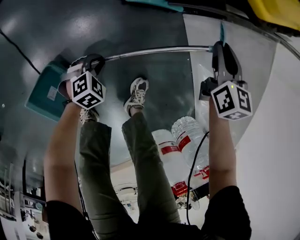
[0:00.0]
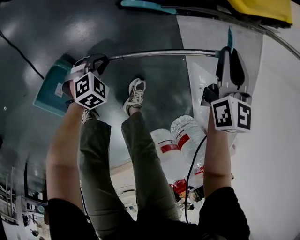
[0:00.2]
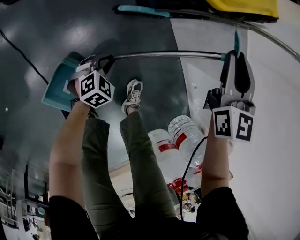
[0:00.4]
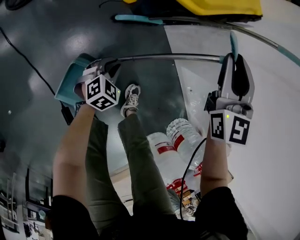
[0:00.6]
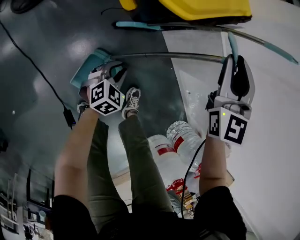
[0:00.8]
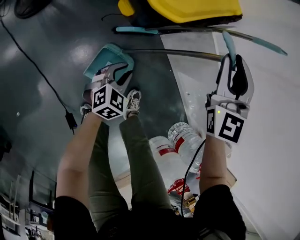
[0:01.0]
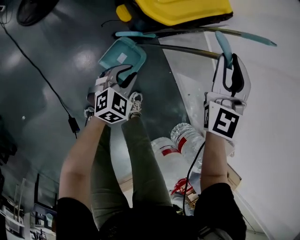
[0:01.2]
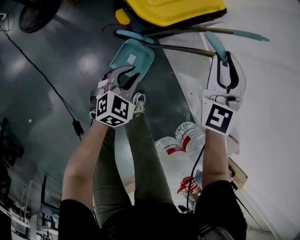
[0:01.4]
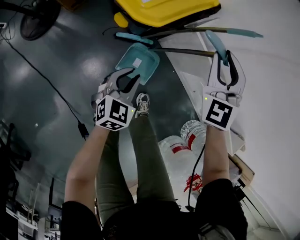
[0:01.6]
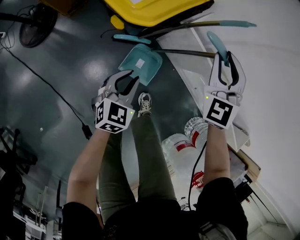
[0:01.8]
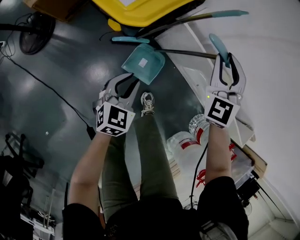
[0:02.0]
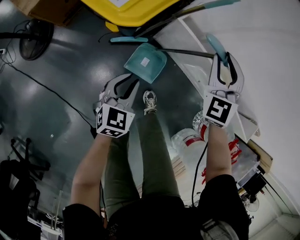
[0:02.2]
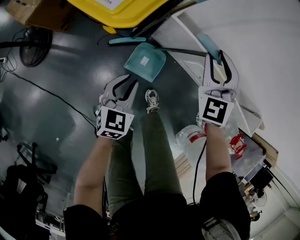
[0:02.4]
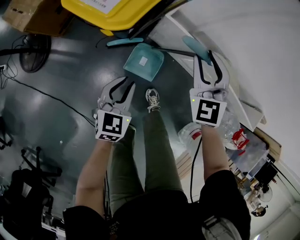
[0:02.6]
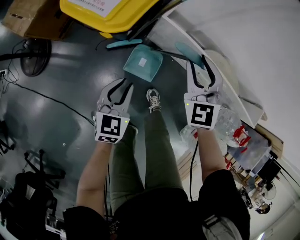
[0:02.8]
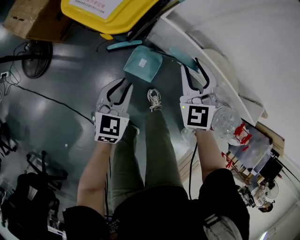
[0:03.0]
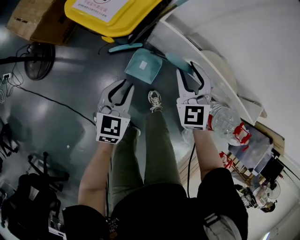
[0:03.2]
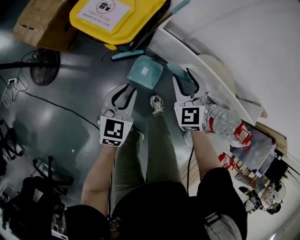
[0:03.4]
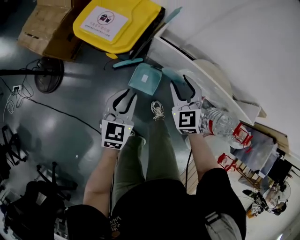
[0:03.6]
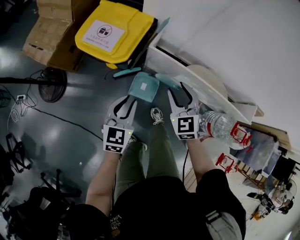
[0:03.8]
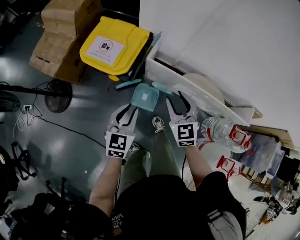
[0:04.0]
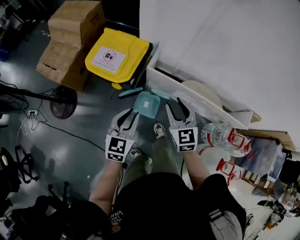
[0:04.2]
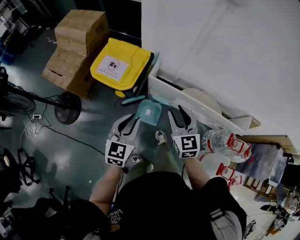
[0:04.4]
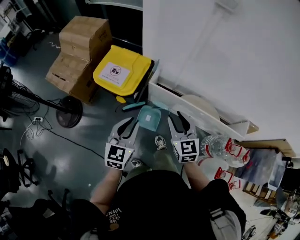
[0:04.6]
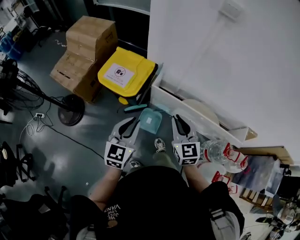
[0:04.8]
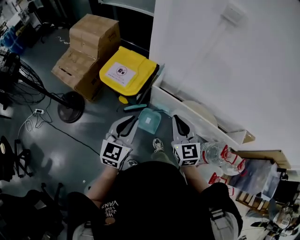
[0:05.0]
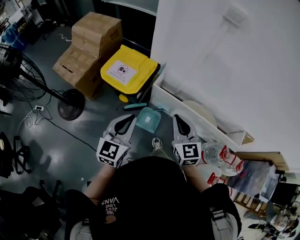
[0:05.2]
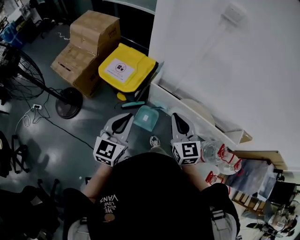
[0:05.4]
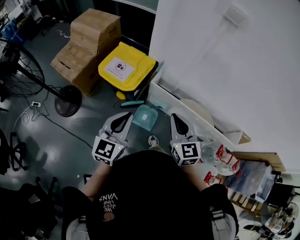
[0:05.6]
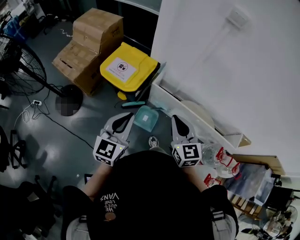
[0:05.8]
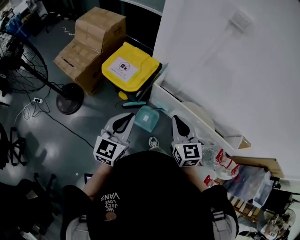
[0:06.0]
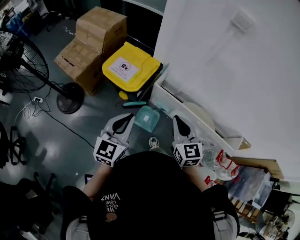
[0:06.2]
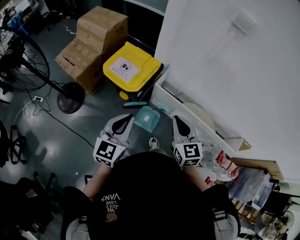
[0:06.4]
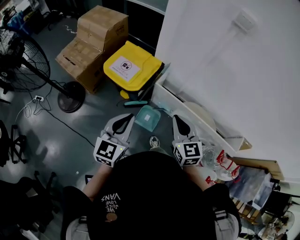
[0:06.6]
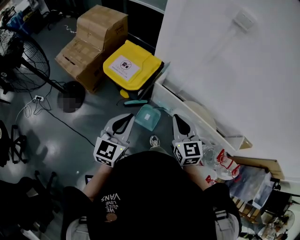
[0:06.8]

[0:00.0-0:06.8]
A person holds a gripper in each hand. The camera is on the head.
0:00.0 to 0:01.4: Both grippers travel together upward, about 35 cm. The right gripper changes its angle by some 40 degrees. Meanwhile the left gripper changes its angle by approximately 30 degrees.
0:01.4 to 0:02.8: The left gripper shifts about 10 cm upward, while the right gripper is displaced to the right and backward by roughly 10 cm, and changes its angle by approximately 20 degrees.
0:02.8 to 0:04.0: The left gripper heads upward, covering about 20 cm. The right gripper goes approximately 15 cm upward and backward.
0:04.0 to 0:05.4: The right gripper travels upward and backward by approximately 20 cm, and closes its fingers, while the left gripper goes roughly 20 cm upward.
0:05.4 to 0:06.8: The grippers make only small movements.

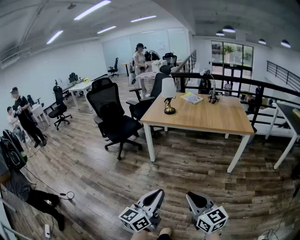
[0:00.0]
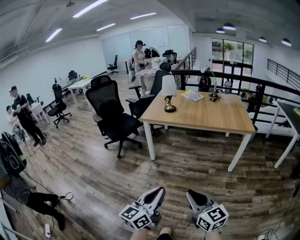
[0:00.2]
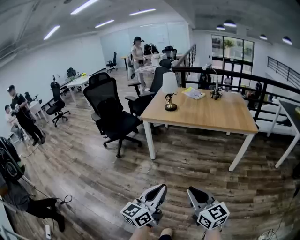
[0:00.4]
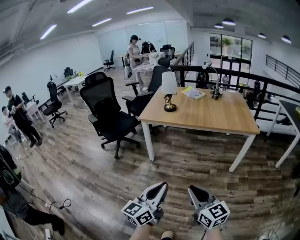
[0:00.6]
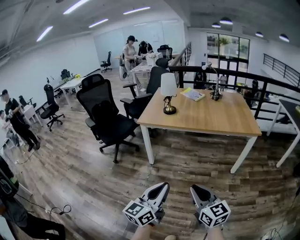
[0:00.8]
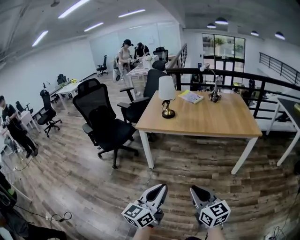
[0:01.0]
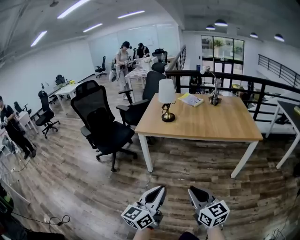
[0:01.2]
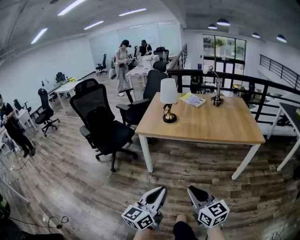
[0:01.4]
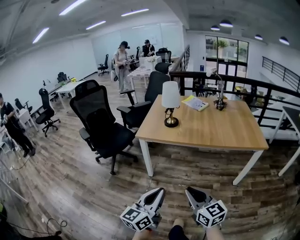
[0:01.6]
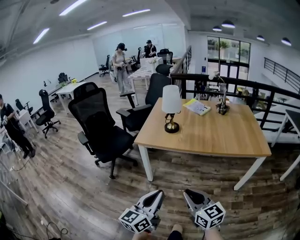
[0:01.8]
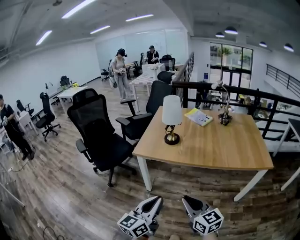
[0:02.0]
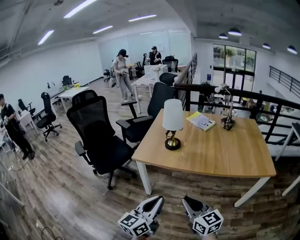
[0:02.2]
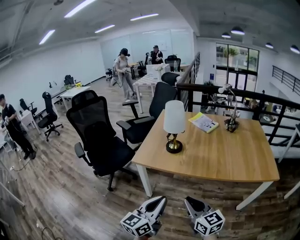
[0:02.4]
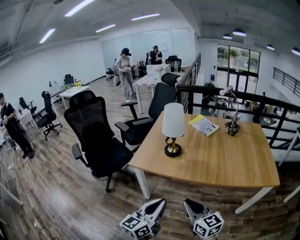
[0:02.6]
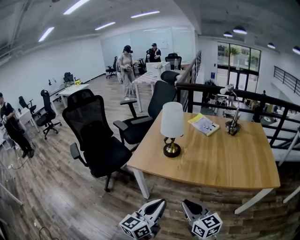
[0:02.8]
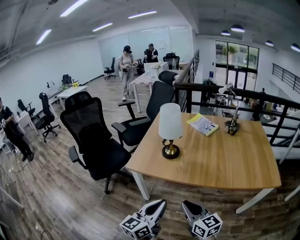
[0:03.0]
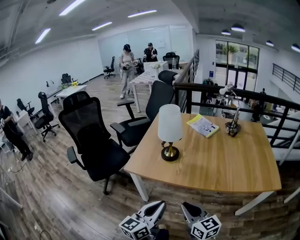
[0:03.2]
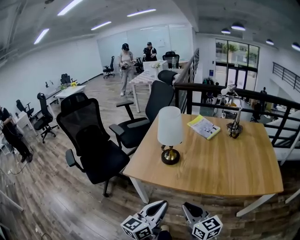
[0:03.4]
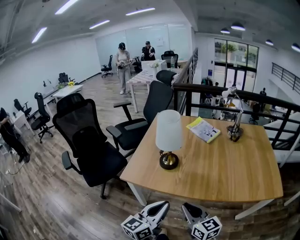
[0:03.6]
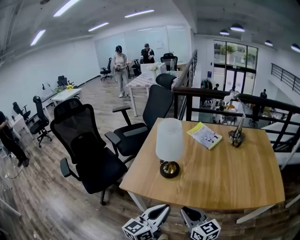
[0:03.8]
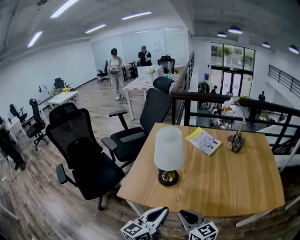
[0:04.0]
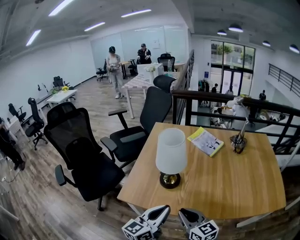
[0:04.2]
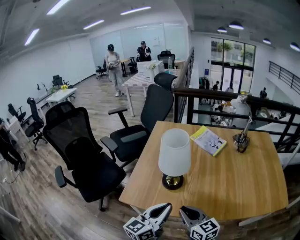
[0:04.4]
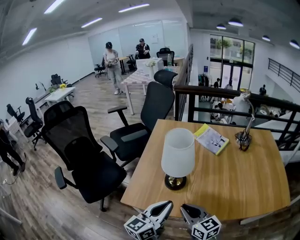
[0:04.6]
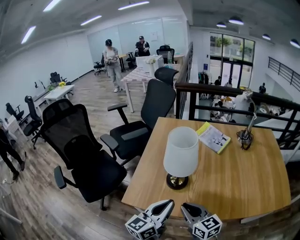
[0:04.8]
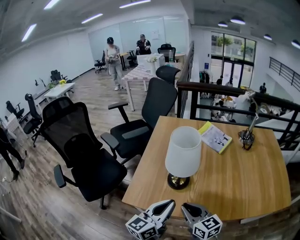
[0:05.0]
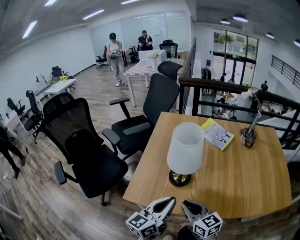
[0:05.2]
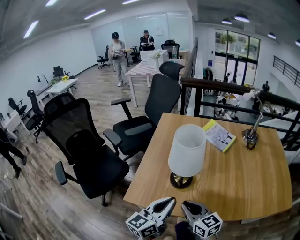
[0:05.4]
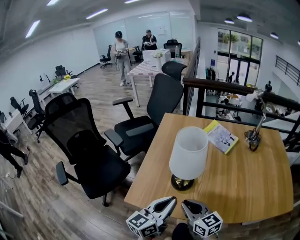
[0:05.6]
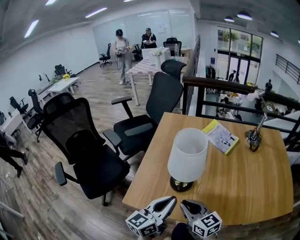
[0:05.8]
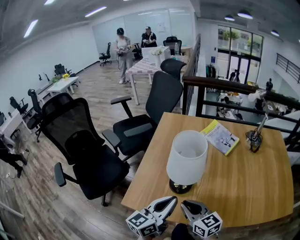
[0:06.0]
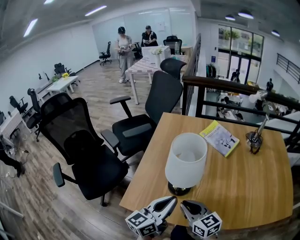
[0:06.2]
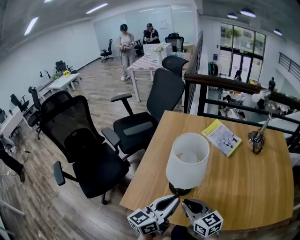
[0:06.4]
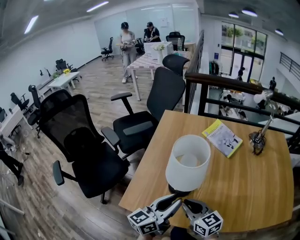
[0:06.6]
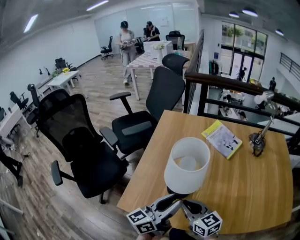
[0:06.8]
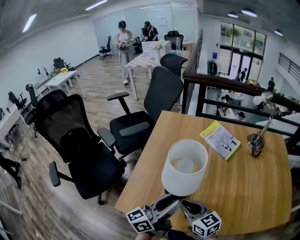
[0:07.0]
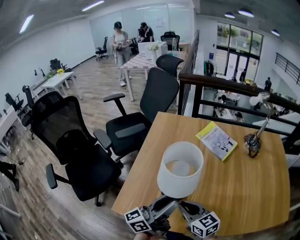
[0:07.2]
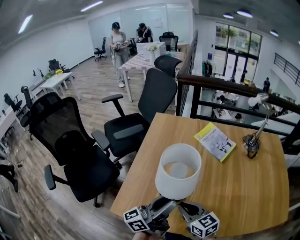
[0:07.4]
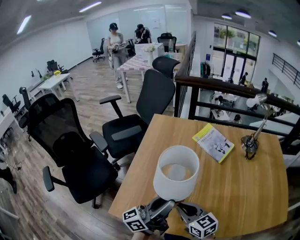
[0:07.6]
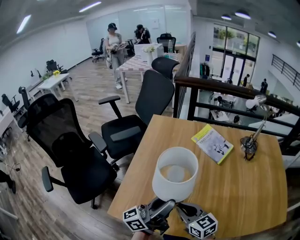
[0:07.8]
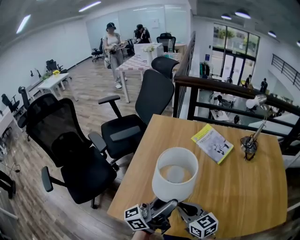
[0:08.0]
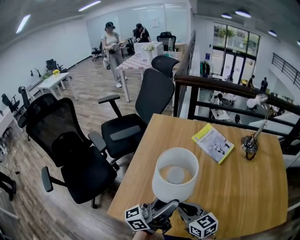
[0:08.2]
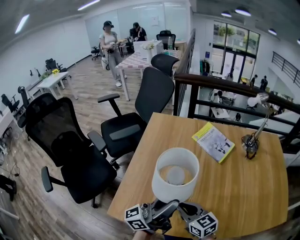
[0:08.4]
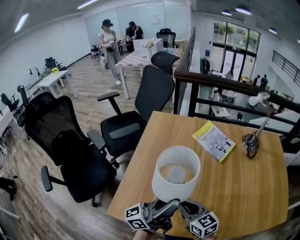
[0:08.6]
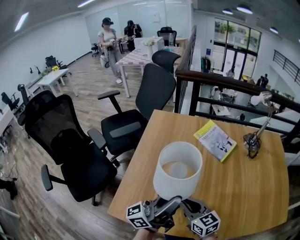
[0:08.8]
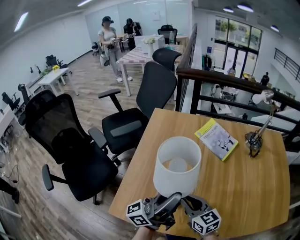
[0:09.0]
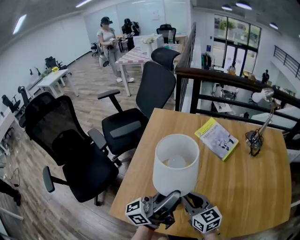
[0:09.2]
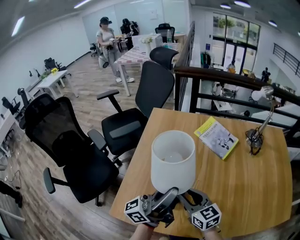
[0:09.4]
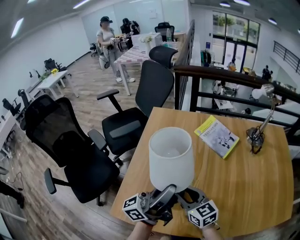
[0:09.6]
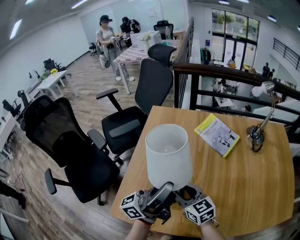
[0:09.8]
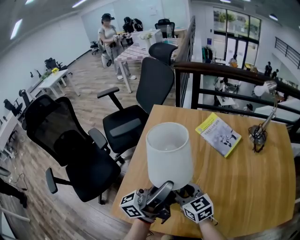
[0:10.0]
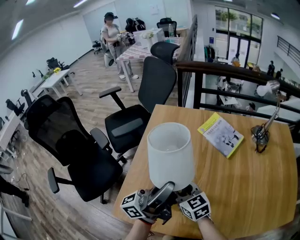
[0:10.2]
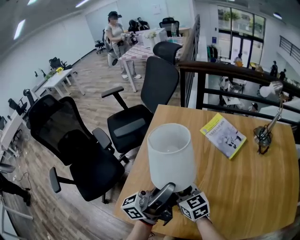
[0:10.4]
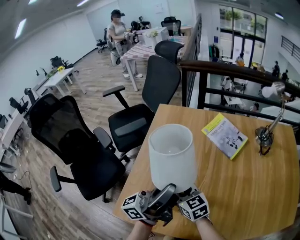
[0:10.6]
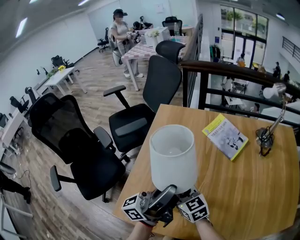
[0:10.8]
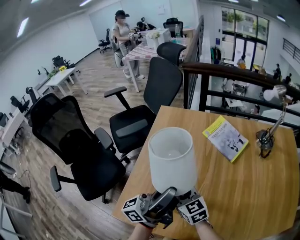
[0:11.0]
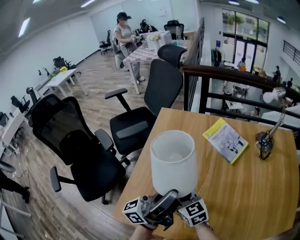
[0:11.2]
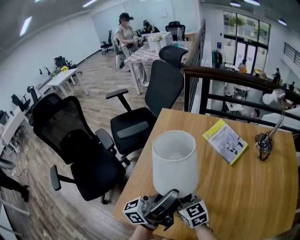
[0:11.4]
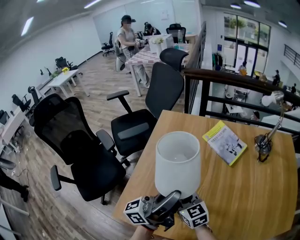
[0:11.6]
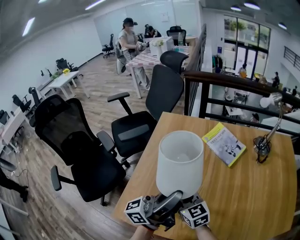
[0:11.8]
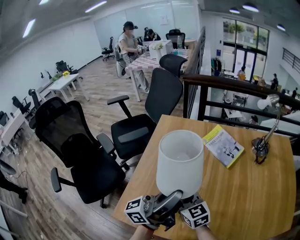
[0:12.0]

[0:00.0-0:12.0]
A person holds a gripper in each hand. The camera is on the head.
0:00.0 to 0:01.6: Both grippers travel together forward, about 35 cm.
0:01.6 to 0:03.0: Both grippers travel together forward, approximately 25 cm.
0:03.0 to 0:04.4: The two grippers go about 25 cm forward.
0:04.4 to 0:06.0: Both grippers travel together forward, about 10 cm.
0:06.0 to 0:07.6: Both grippers travel together forward, approximately 5 cm. The left gripper changes its angle by approximately 30 degrees, and opens up.
0:07.6 to 0:09.0: The left gripper closes its fingers.
0:09.0 to 0:10.4: The left gripper shifts by some 5 cm; the right gripper shifts approximately 10 cm forward and to the left, and opens.
0:10.4 to 0:12.0: The left gripper ends up roughly 5 cm from where it was.

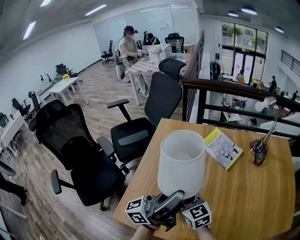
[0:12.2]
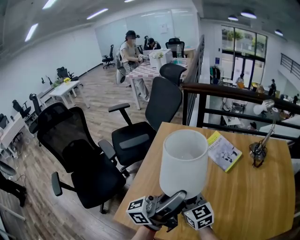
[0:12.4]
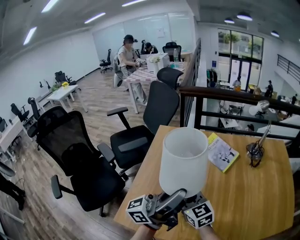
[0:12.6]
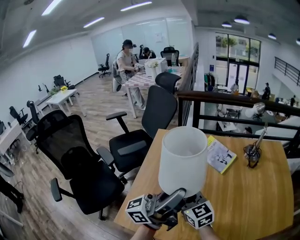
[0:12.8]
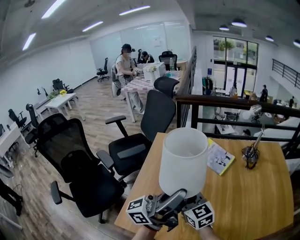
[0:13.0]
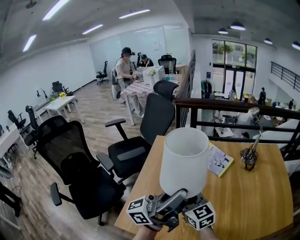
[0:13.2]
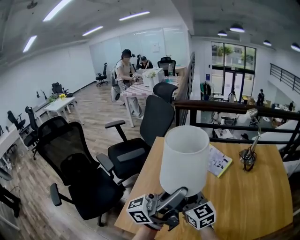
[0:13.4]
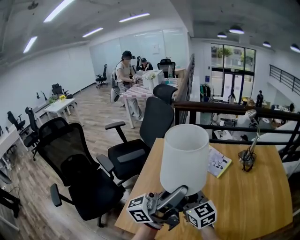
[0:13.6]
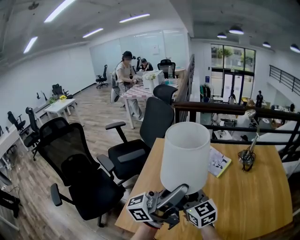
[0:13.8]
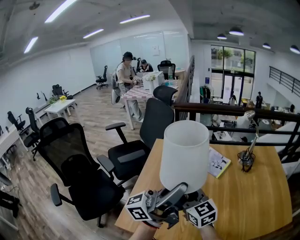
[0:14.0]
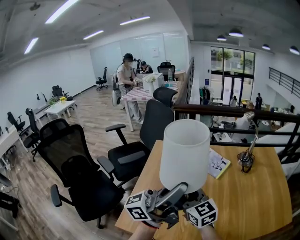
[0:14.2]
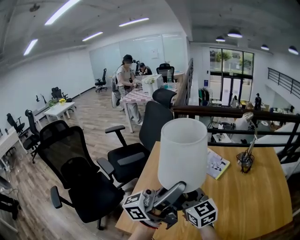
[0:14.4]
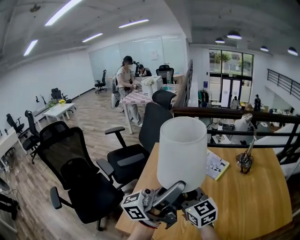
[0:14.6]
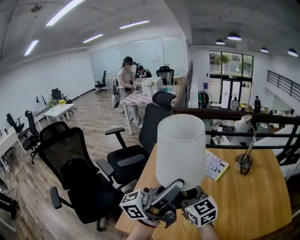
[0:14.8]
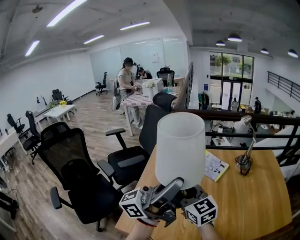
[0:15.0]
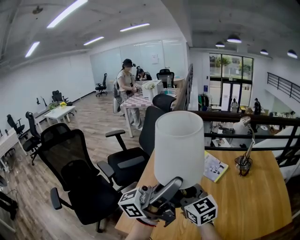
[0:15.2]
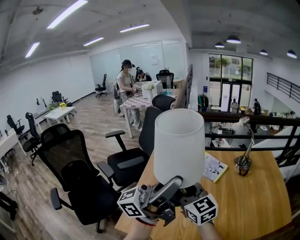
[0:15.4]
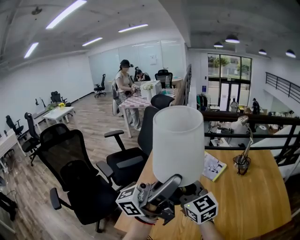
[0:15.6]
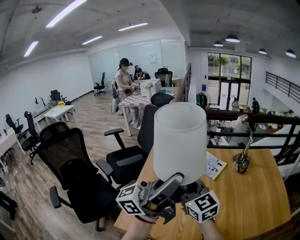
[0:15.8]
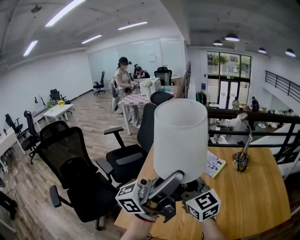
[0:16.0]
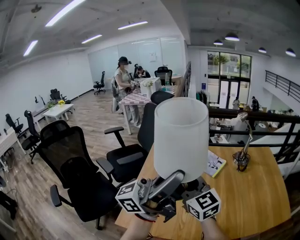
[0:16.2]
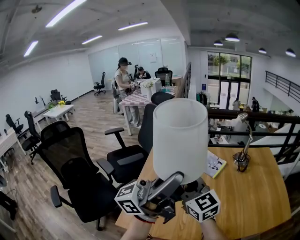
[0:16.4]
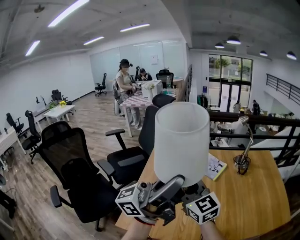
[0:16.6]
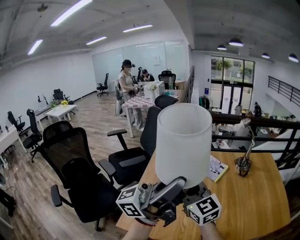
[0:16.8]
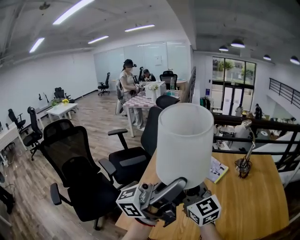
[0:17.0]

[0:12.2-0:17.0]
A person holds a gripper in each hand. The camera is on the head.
0:12.2 to 0:13.8: The grippers both shift upward by about 10 cm.
0:13.8 to 0:15.4: The two grippers go approximately 10 cm upward.
0:15.4 to 0:17.0: The grippers make only small movements.
